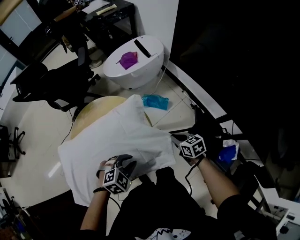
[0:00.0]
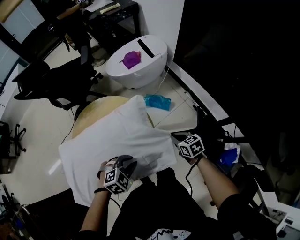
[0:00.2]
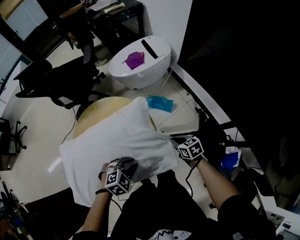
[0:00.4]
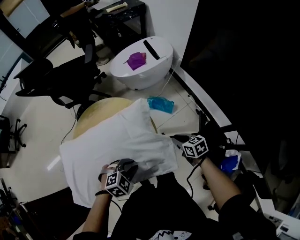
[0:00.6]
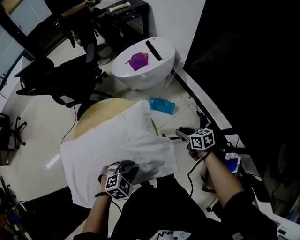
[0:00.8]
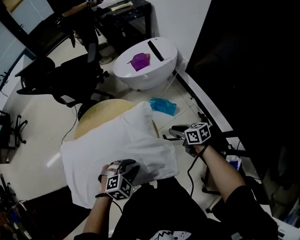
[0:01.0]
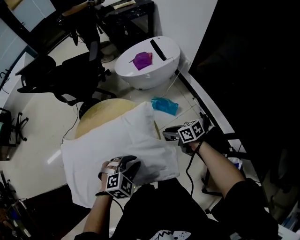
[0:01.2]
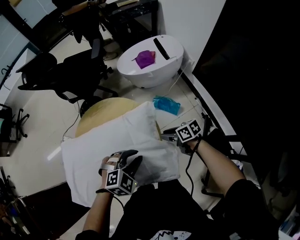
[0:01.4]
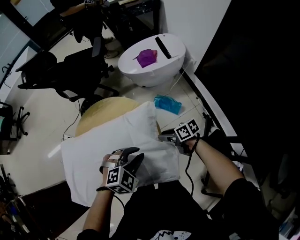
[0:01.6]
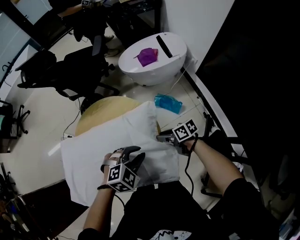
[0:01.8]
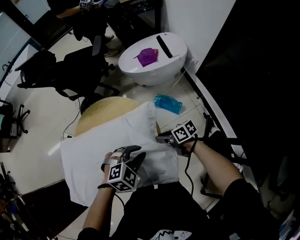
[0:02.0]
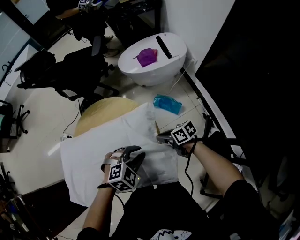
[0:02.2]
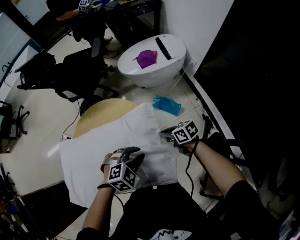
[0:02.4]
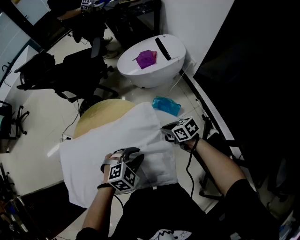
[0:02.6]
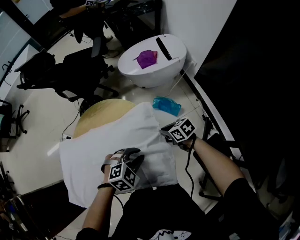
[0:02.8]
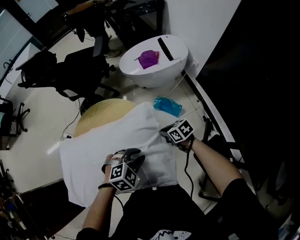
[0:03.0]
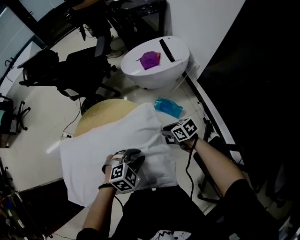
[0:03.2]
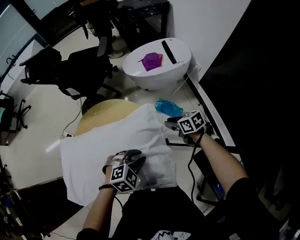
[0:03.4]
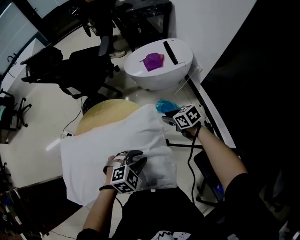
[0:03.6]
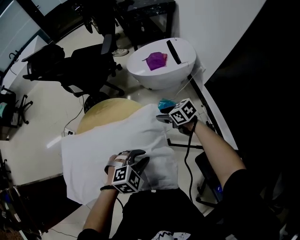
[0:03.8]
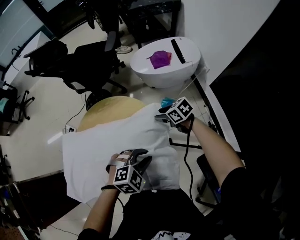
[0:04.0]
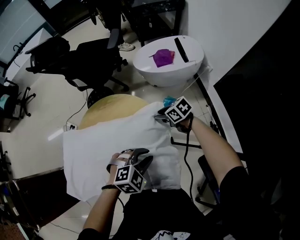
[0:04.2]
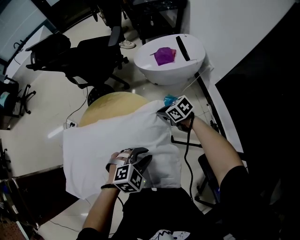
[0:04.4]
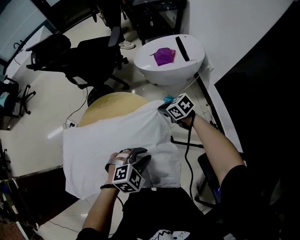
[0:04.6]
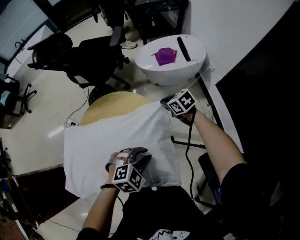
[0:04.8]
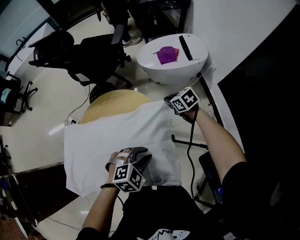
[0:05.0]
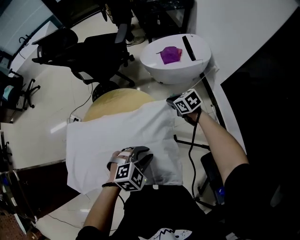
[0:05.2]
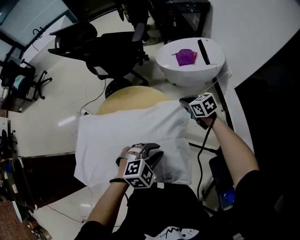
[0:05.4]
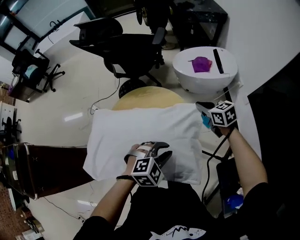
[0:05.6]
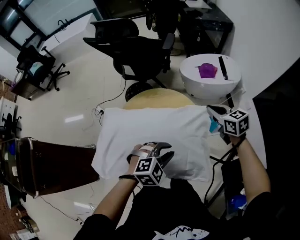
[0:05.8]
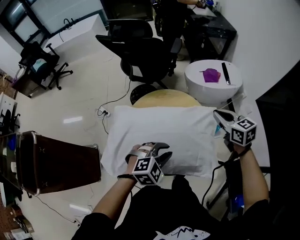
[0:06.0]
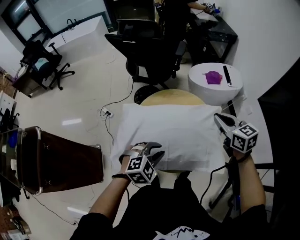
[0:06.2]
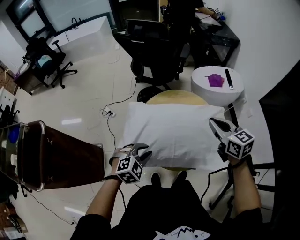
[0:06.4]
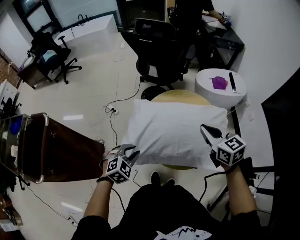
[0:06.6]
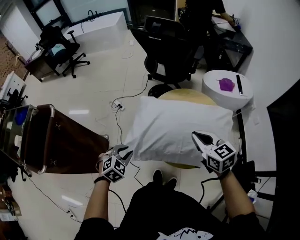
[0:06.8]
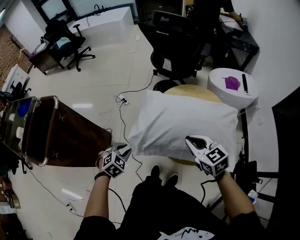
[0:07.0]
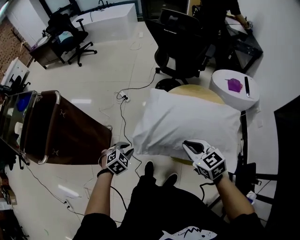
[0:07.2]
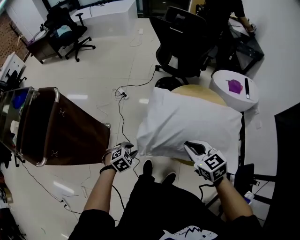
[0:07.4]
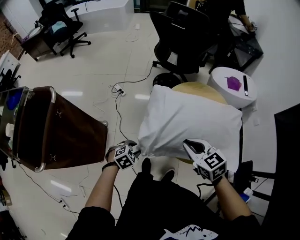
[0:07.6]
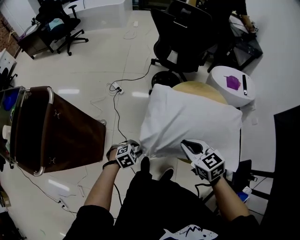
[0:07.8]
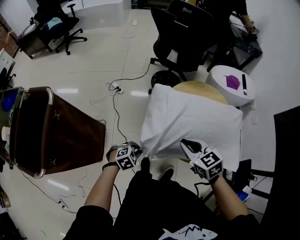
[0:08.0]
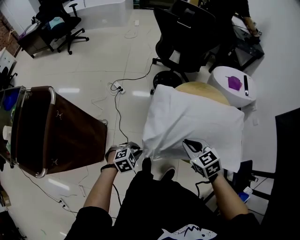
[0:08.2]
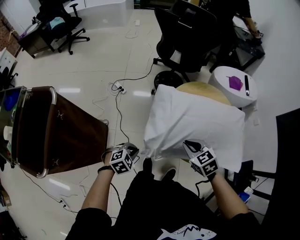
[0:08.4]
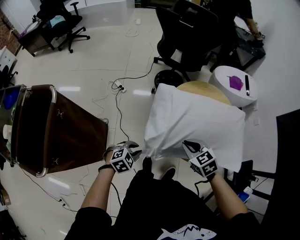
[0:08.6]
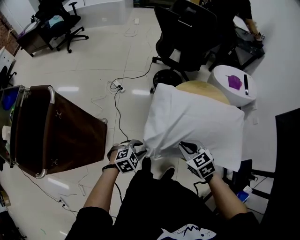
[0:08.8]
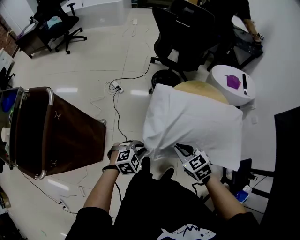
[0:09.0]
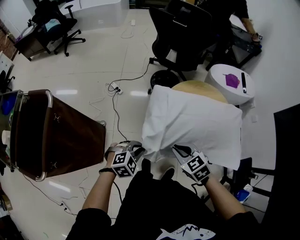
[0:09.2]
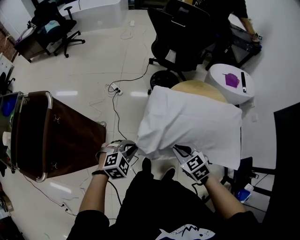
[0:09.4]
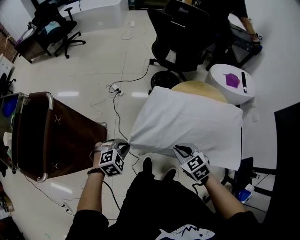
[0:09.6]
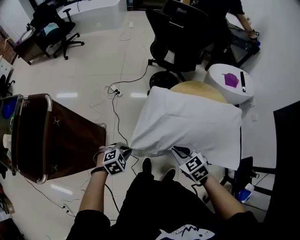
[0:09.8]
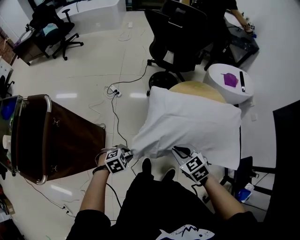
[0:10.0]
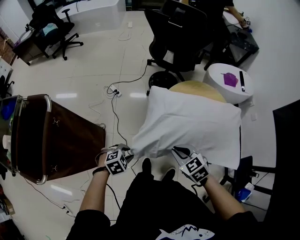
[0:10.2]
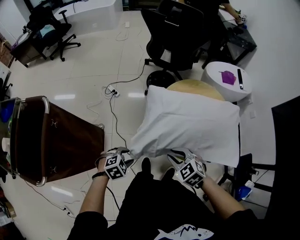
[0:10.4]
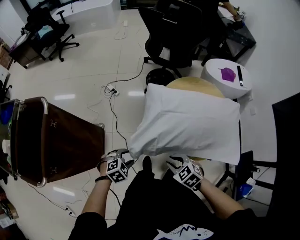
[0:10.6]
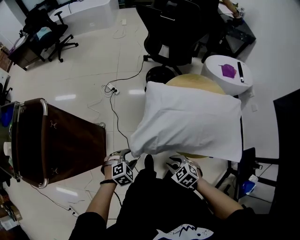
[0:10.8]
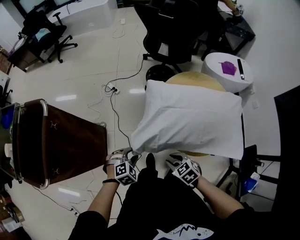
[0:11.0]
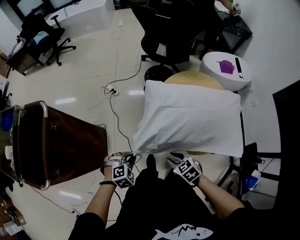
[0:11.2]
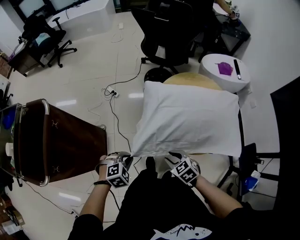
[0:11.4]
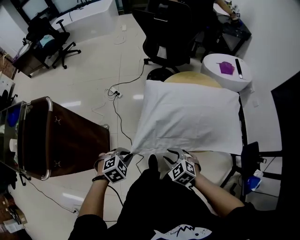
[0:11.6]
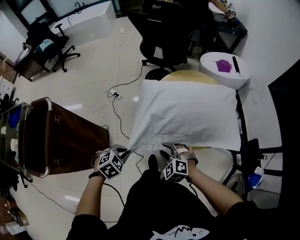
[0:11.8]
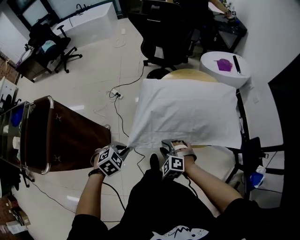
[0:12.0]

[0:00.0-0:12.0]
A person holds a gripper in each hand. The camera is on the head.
0:00.0 to 0:01.6: The right gripper changes place by approximately 15 cm, turns by some 40 degrees, and opens. The left gripper ends up approximately 10 cm from where it was.
0:01.6 to 0:03.0: The right gripper swivels roughly 20 degrees, and closes up.
0:03.0 to 0:04.4: The right gripper changes place by some 10 cm, and opens, then closes once more.
0:04.4 to 0:06.0: The left gripper shifts by some 20 cm, while the right gripper is displaced upward by approximately 25 cm, and changes its angle by roughly 30 degrees.
0:06.0 to 0:07.6: The right gripper changes place by about 40 cm, and rotates roughly 20 degrees. The left gripper shifts by some 40 cm, and turns by approximately 30 degrees.
0:07.6 to 0:09.0: The right gripper moves downward, about 5 cm. The left gripper closes.
0:09.0 to 0:10.4: The left gripper moves some 5 cm upward and comes back, and opens its fingers.
0:10.4 to 0:12.0: The left gripper heads upward, covering roughly 10 cm, and closes up; the right gripper shifts about 5 cm downward, and swivels some 30 degrees.

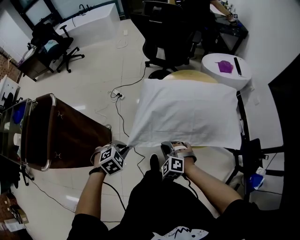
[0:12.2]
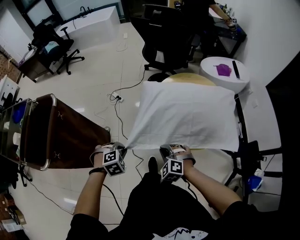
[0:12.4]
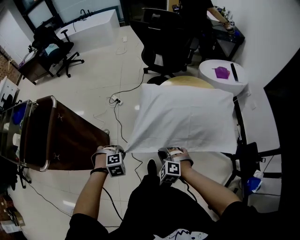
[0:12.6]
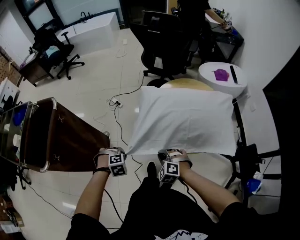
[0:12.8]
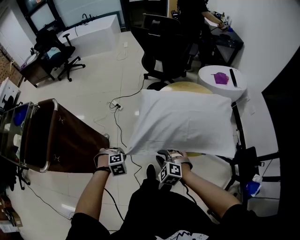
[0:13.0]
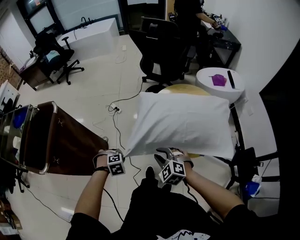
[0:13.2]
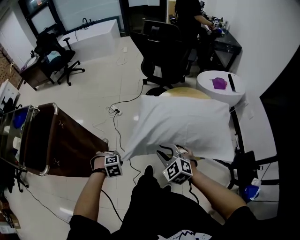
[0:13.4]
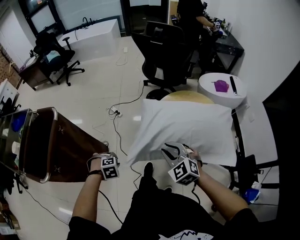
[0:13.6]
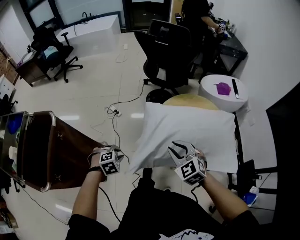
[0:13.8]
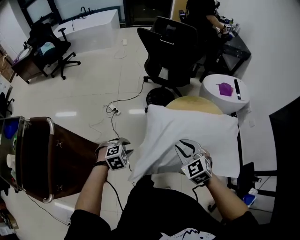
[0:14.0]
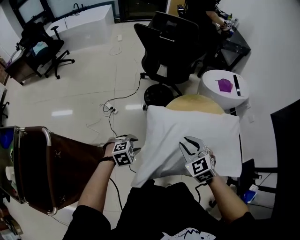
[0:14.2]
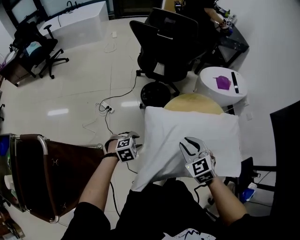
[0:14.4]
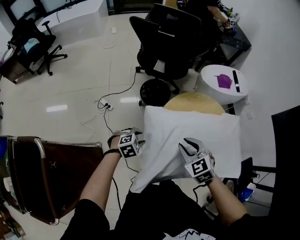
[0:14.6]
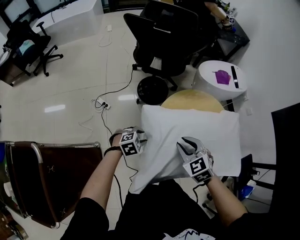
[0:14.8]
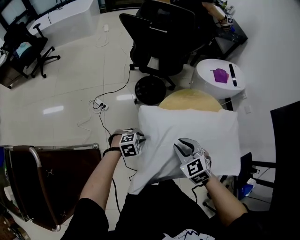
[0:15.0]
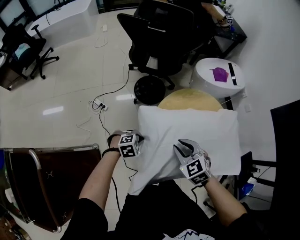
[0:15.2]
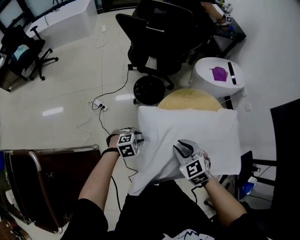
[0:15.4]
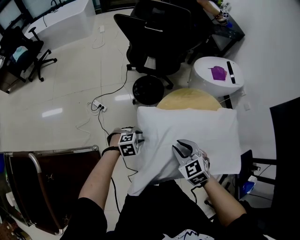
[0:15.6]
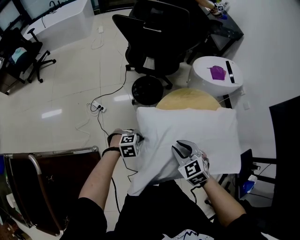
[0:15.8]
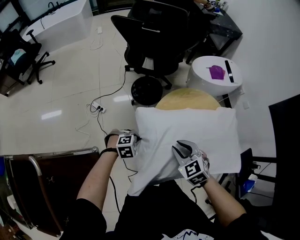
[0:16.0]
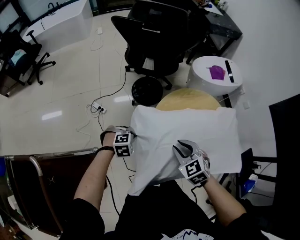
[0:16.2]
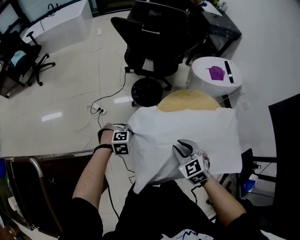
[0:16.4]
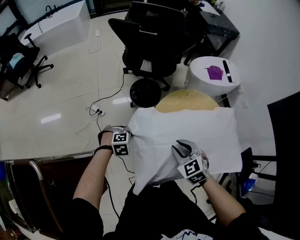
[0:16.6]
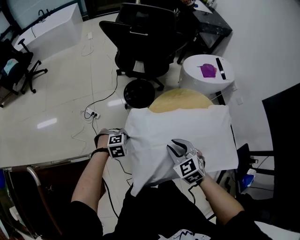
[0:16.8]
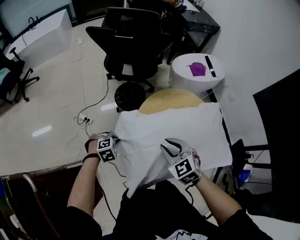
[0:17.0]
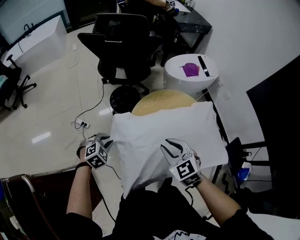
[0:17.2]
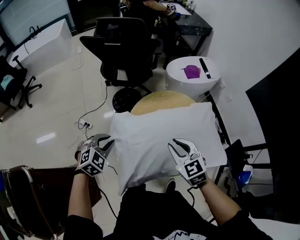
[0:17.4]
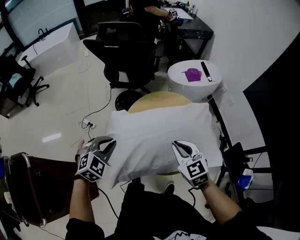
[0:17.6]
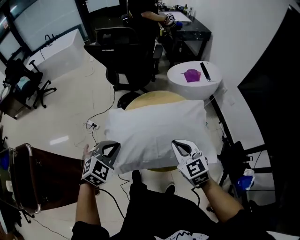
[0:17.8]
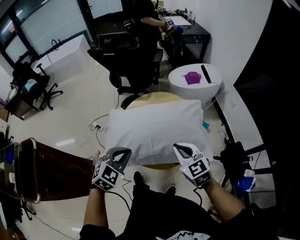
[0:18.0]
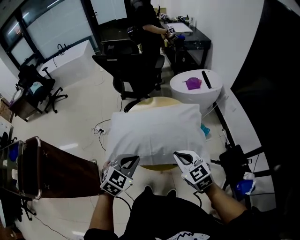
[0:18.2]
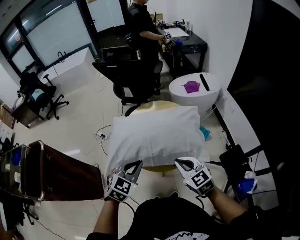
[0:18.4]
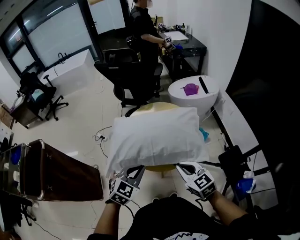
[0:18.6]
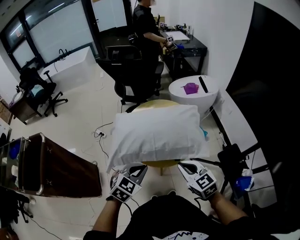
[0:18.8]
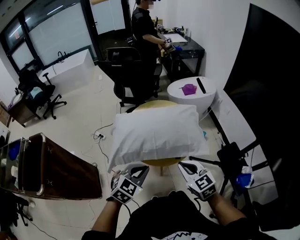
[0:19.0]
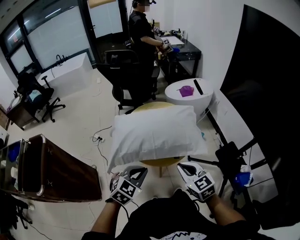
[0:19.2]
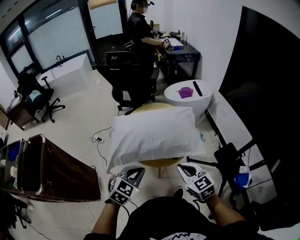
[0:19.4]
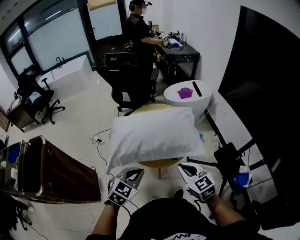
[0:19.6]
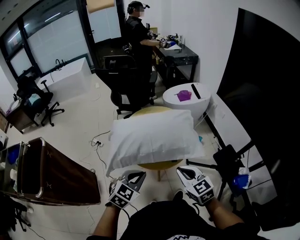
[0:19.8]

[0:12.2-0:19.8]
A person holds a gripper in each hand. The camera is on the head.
0:12.2 to 0:13.8: The right gripper is displaced upward by approximately 15 cm, changes its angle by some 20 degrees, and opens. The left gripper shifts by some 10 cm.
0:13.8 to 0:15.2: The left gripper travels forward by about 20 cm, and rotates some 20 degrees. The right gripper is displaced forward and downward by roughly 15 cm.
0:15.2 to 0:16.8: The left gripper shifts by roughly 5 cm, and opens, then closes again.
0:16.8 to 0:18.2: The right gripper is displaced to the right and backward by roughly 30 cm, swivels some 20 degrees, and closes; the left gripper travels to the right, upward and backward by approximately 40 cm, and tilts its fingers some 30 degrees upward.
0:18.2 to 0:19.8: The grippers both shift backward by about 10 cm.

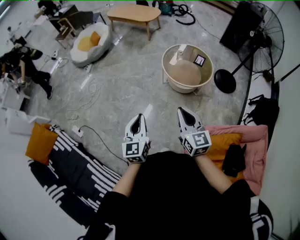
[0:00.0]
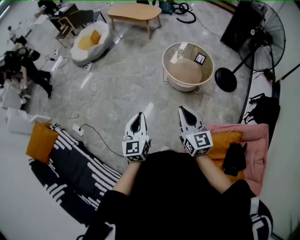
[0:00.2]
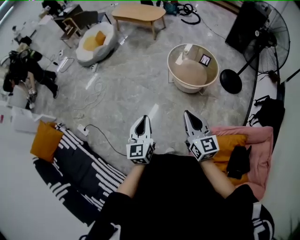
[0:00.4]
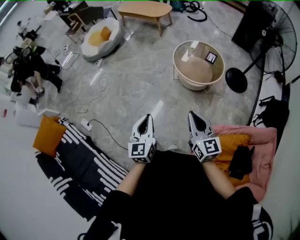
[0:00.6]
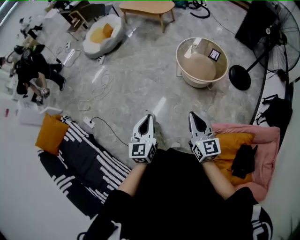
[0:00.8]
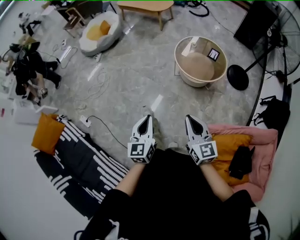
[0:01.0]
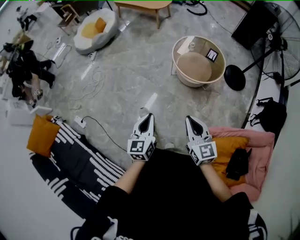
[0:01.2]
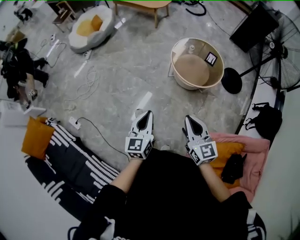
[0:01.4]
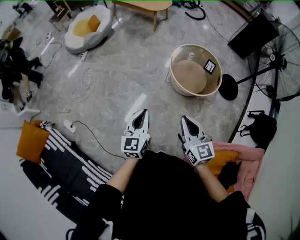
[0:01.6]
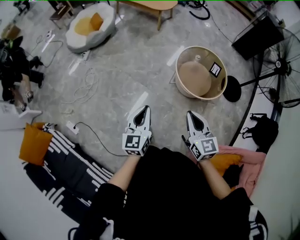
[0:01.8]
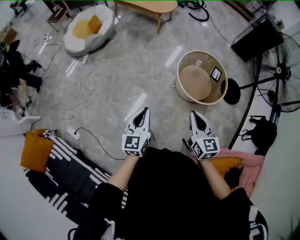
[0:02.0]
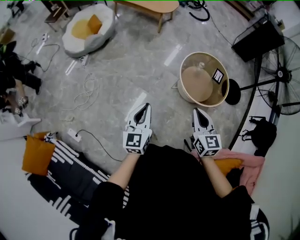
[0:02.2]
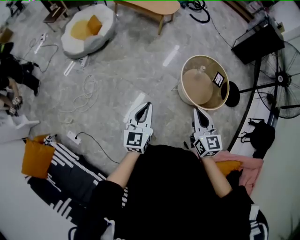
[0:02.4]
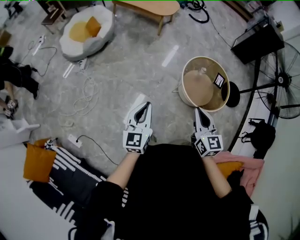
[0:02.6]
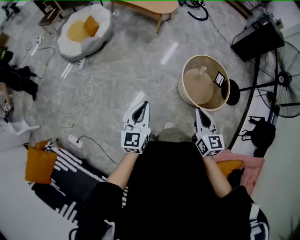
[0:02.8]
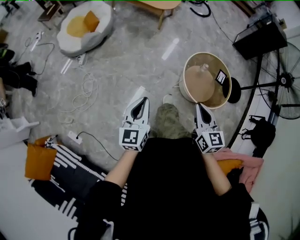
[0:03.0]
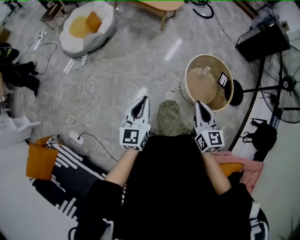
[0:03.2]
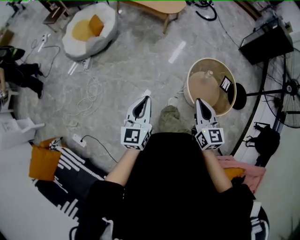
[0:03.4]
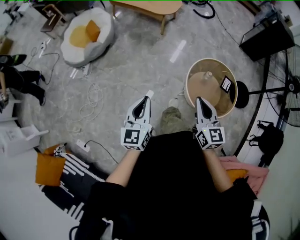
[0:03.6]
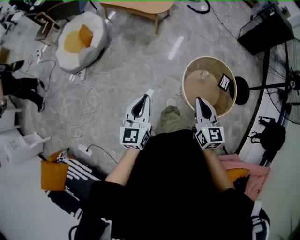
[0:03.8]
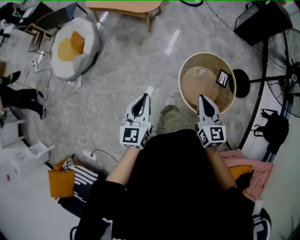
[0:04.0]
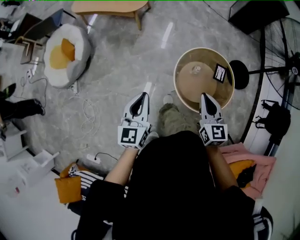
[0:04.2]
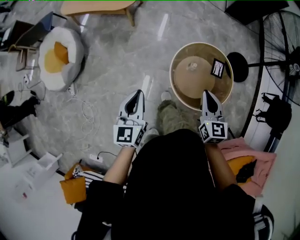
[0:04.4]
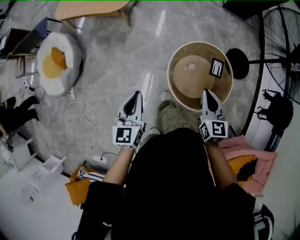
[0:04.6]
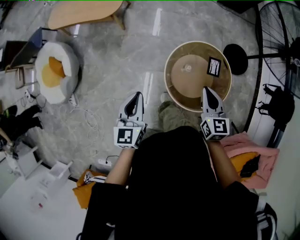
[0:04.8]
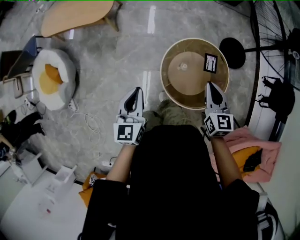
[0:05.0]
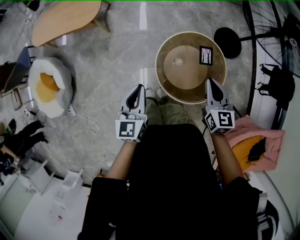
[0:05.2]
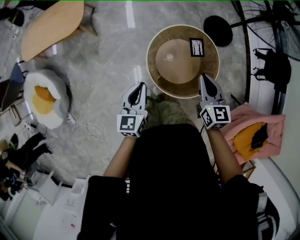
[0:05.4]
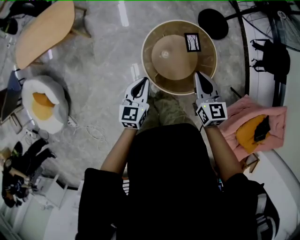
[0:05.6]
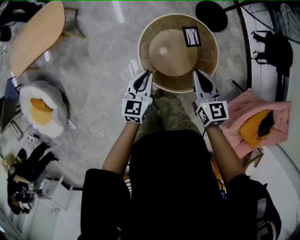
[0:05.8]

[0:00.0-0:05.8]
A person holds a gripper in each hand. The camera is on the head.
0:00.0 to 0:01.4: The grippers both shift forward and downward by approximately 15 cm.
0:01.4 to 0:02.8: The two grippers travel together, forward and to the left, some 40 cm.
0:02.8 to 0:04.4: The two grippers travel together, forward and to the right, roughly 40 cm. The right gripper rotates some 20 degrees.
0:04.4 to 0:05.8: The right gripper changes place by approximately 20 cm; the left gripper shifts by about 35 cm, and rotates roughly 40 degrees.